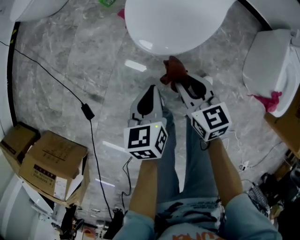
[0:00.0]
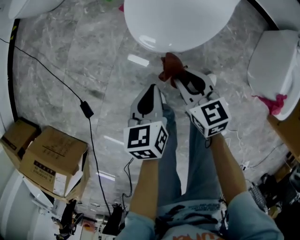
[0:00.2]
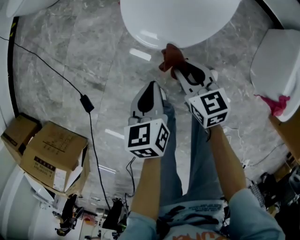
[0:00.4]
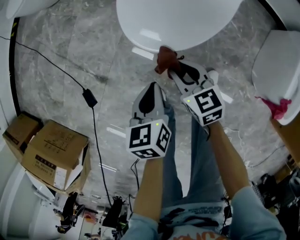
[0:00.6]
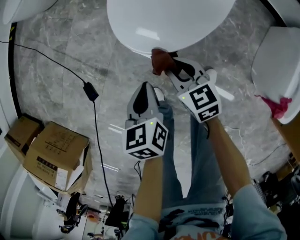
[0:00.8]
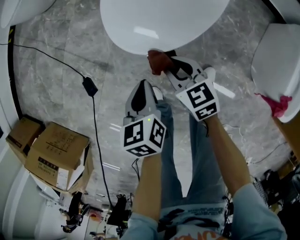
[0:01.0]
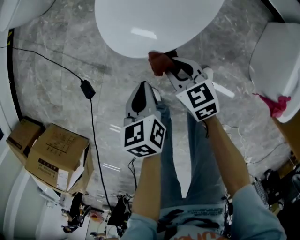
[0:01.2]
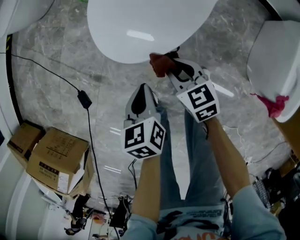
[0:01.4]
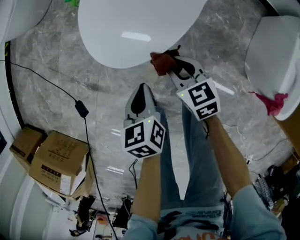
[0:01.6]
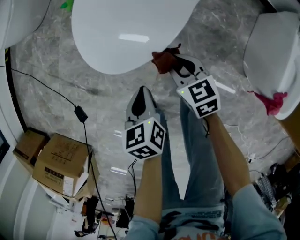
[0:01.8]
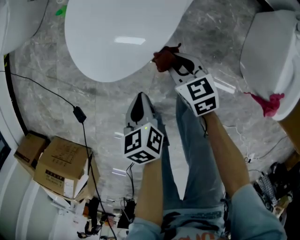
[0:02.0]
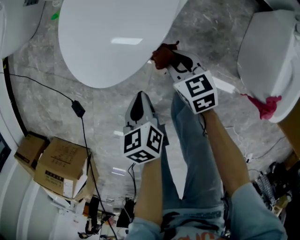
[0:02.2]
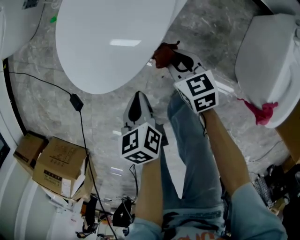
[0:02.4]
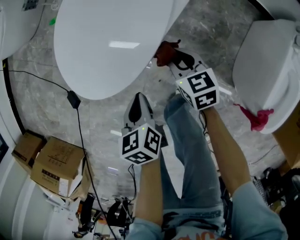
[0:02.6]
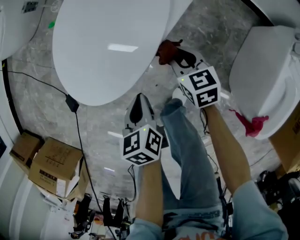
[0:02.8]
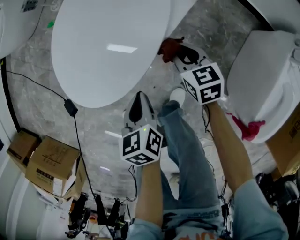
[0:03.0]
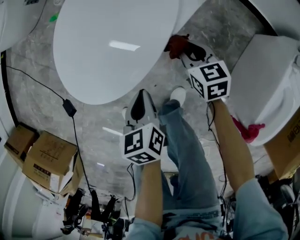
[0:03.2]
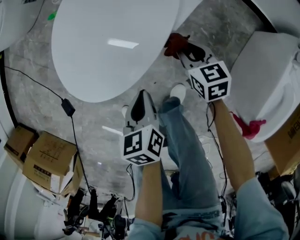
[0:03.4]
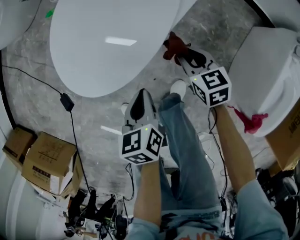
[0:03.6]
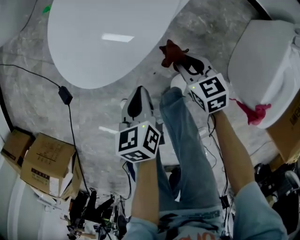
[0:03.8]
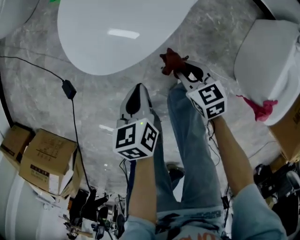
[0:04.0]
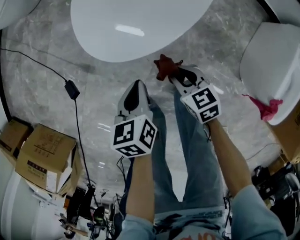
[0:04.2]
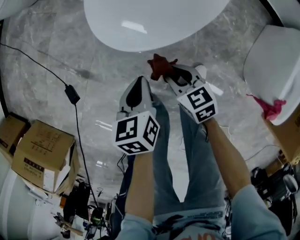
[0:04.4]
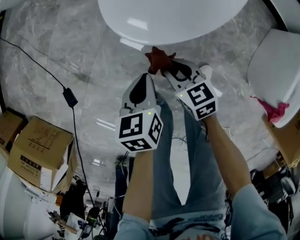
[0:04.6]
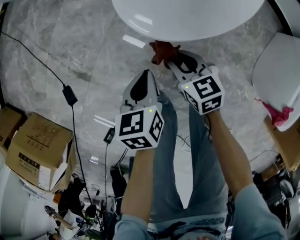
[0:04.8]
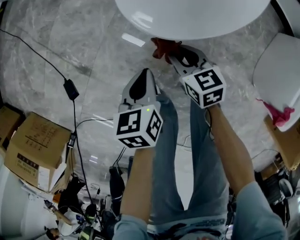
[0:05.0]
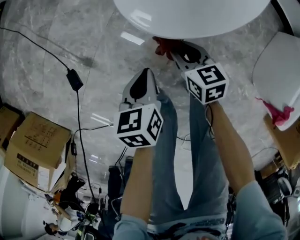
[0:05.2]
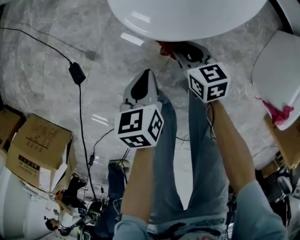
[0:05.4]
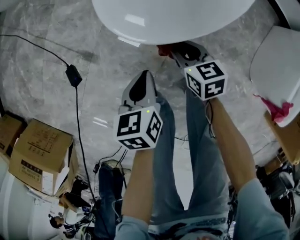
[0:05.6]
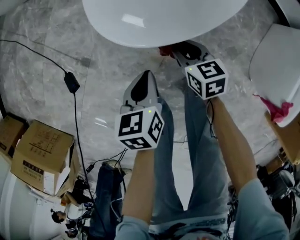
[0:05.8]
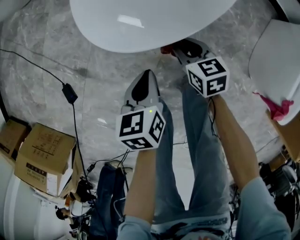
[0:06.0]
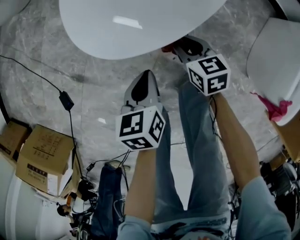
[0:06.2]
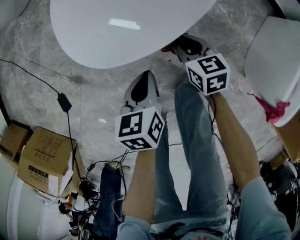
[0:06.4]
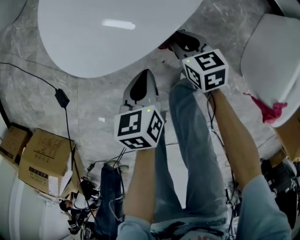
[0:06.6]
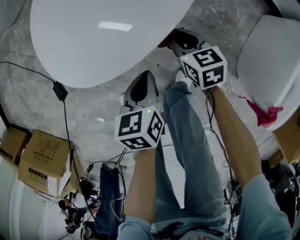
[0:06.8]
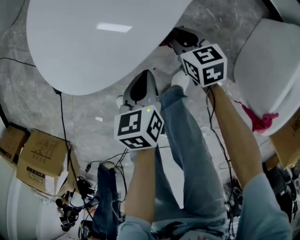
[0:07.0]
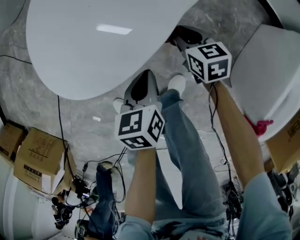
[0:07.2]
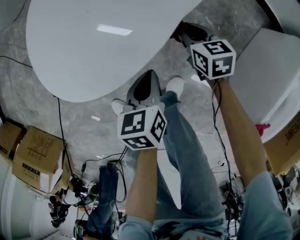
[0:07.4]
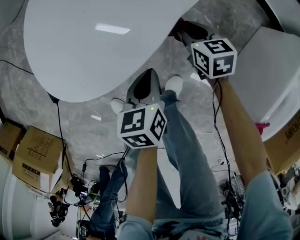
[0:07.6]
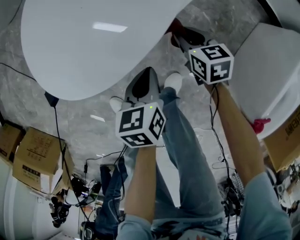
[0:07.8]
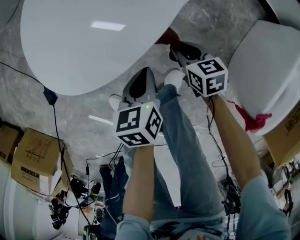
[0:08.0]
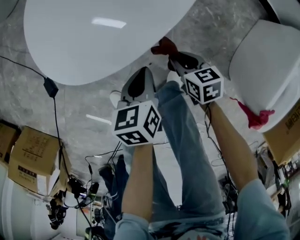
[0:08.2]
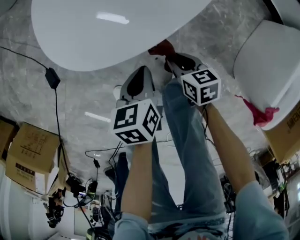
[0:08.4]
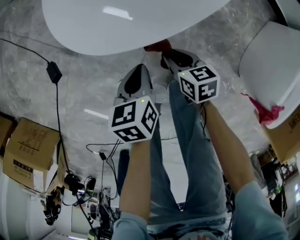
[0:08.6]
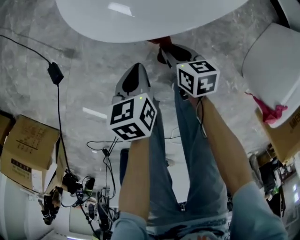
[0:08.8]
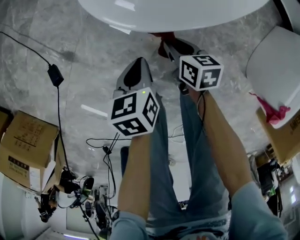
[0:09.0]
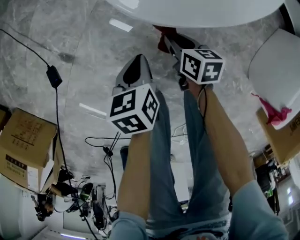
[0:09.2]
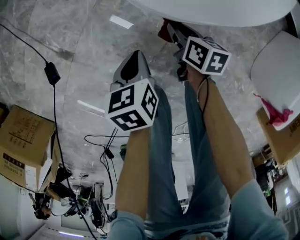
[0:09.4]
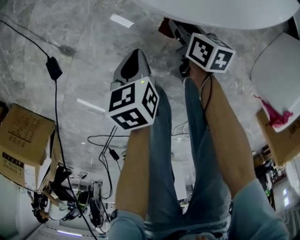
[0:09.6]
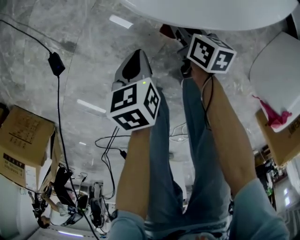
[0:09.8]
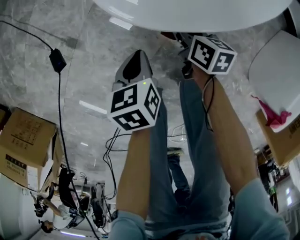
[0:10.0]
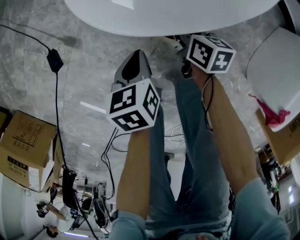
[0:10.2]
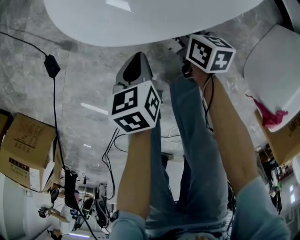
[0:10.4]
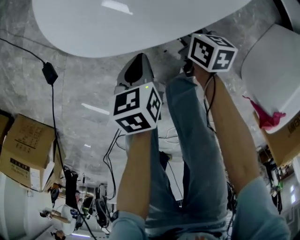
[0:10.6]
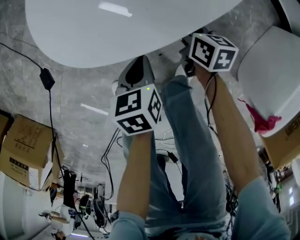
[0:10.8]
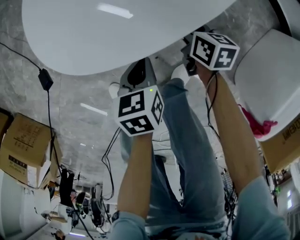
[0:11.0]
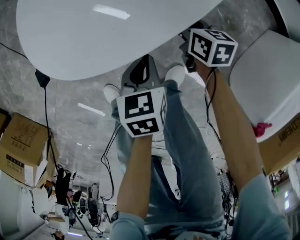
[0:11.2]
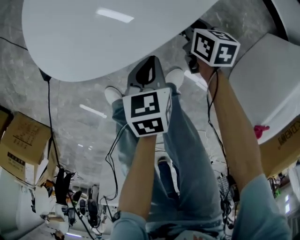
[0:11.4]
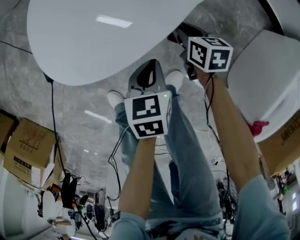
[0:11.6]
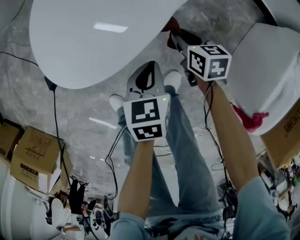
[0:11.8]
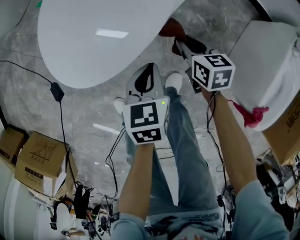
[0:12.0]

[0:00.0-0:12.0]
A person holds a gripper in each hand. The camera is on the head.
0:00.0 to 0:01.6: The left gripper shifts about 10 cm to the right and downward, while the right gripper shifts roughly 15 cm downward and to the right.
0:01.6 to 0:03.0: The left gripper moves to the right, approximately 15 cm. The right gripper moves to the right and forward, about 25 cm.
0:03.0 to 0:04.4: The right gripper moves to the left and backward, approximately 30 cm; the left gripper heads to the left, covering approximately 20 cm.
0:04.4 to 0:06.0: The left gripper travels downward by roughly 5 cm, and moves roughly 5 cm to the left and comes back; the right gripper goes some 10 cm forward, downward and to the right.
0:06.0 to 0:07.6: The right gripper heads to the right and forward, covering about 25 cm, while the left gripper travels to the right by some 20 cm.
0:07.6 to 0:09.0: The right gripper travels to the left and backward by about 30 cm; the left gripper moves to the left, about 25 cm.
0:09.0 to 0:10.4: The right gripper moves forward and to the right, roughly 10 cm. The left gripper heads to the right, covering some 5 cm.
0:10.4 to 0:12.0: Both grippers travel together to the right and upward, approximately 20 cm. The left gripper swivels roughly 20 degrees.

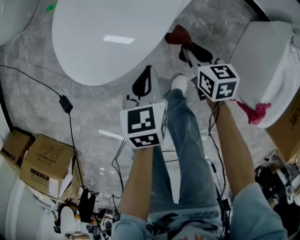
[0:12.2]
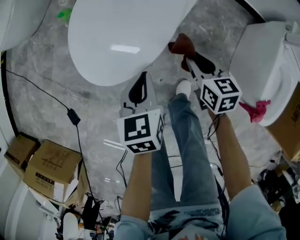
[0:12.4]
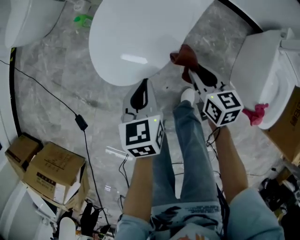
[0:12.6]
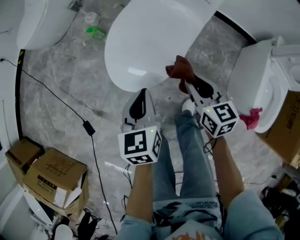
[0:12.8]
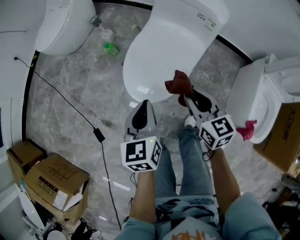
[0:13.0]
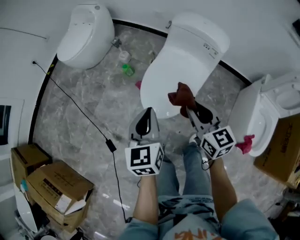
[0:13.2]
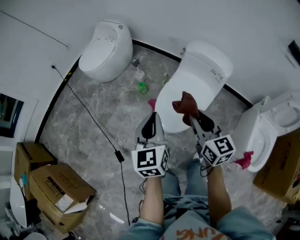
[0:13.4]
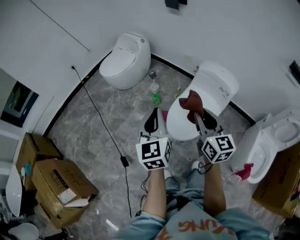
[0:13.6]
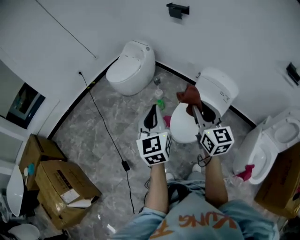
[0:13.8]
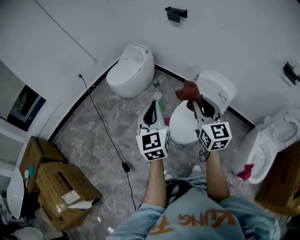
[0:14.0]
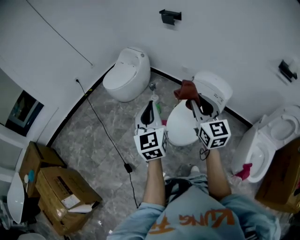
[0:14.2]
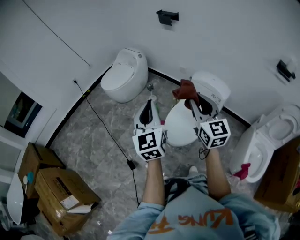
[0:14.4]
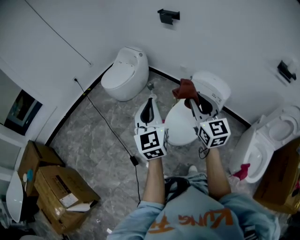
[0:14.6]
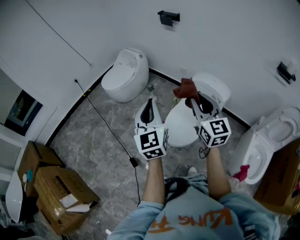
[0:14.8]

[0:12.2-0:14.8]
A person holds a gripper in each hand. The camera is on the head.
0:12.2 to 0:13.4: The grippers both shift upward and to the left by roughly 60 cm. The right gripper tilts its fingers some 40 degrees upward; the left gripper points its fingers some 30 degrees further upward.
0:13.4 to 0:14.8: The two grippers go about 20 cm upward. The right gripper swivels about 20 degrees. The left gripper rotates some 20 degrees.

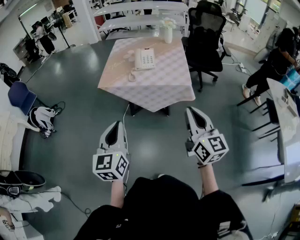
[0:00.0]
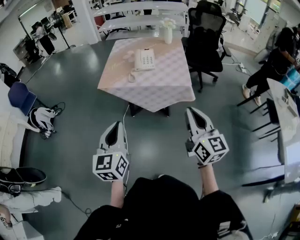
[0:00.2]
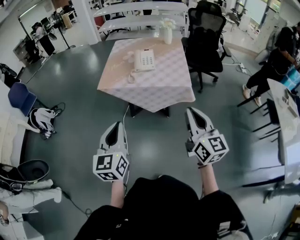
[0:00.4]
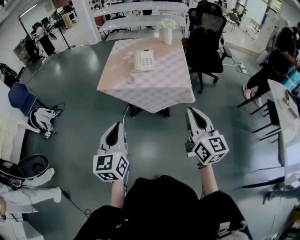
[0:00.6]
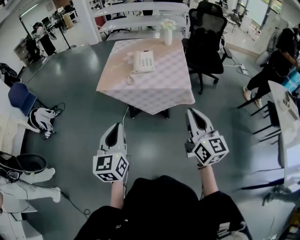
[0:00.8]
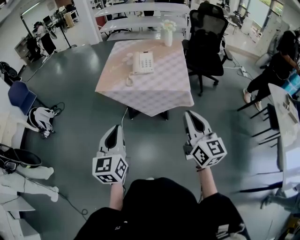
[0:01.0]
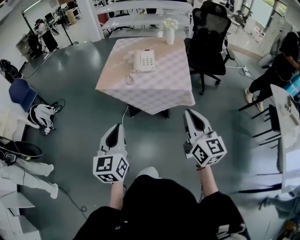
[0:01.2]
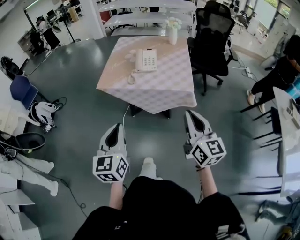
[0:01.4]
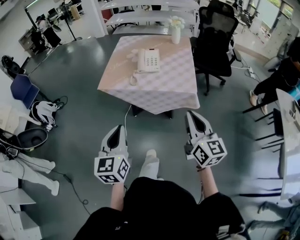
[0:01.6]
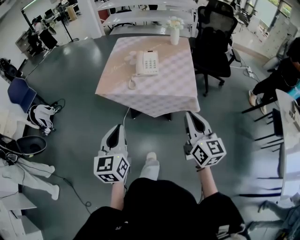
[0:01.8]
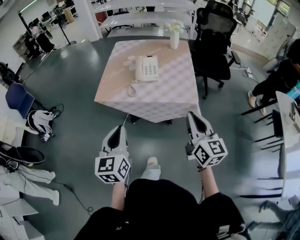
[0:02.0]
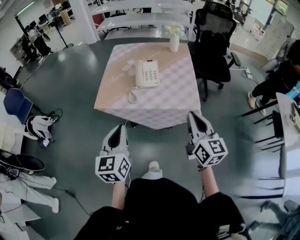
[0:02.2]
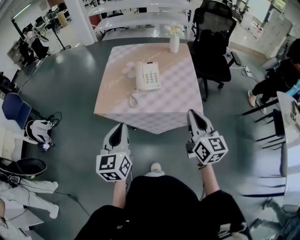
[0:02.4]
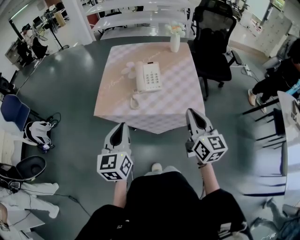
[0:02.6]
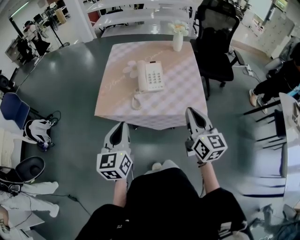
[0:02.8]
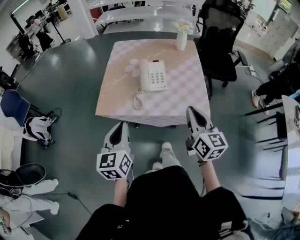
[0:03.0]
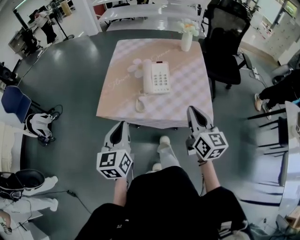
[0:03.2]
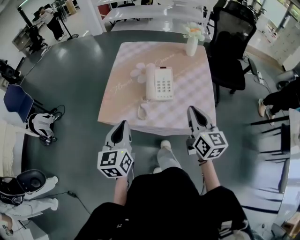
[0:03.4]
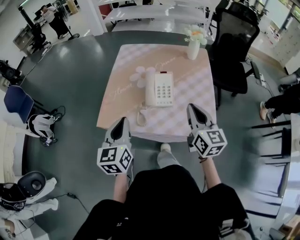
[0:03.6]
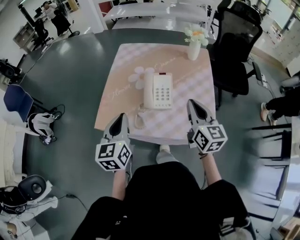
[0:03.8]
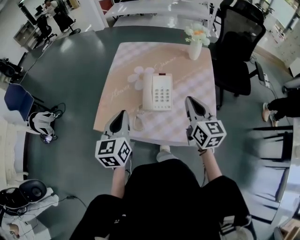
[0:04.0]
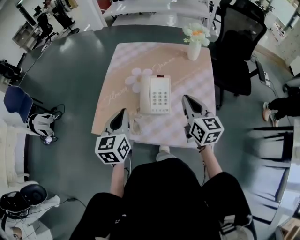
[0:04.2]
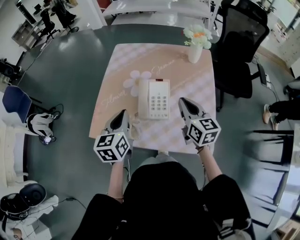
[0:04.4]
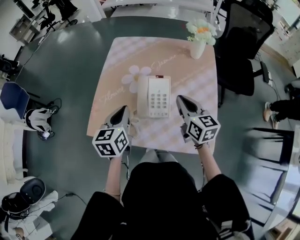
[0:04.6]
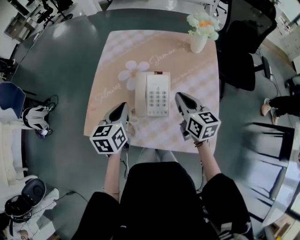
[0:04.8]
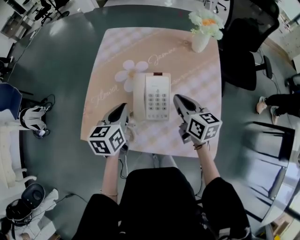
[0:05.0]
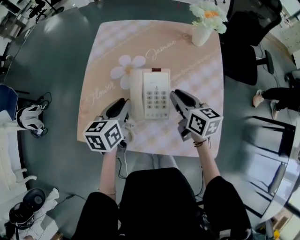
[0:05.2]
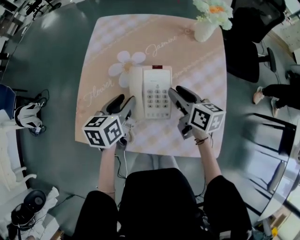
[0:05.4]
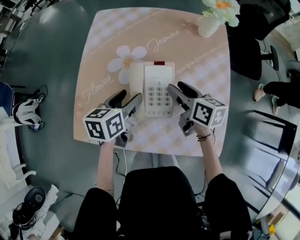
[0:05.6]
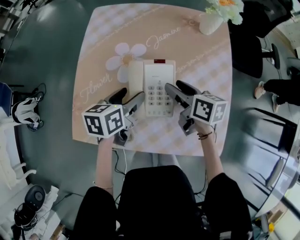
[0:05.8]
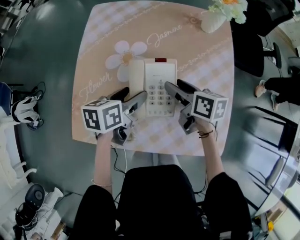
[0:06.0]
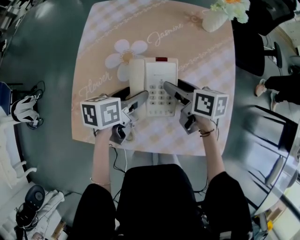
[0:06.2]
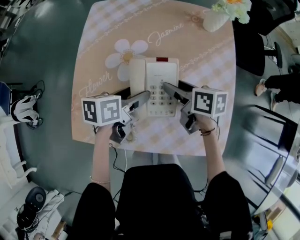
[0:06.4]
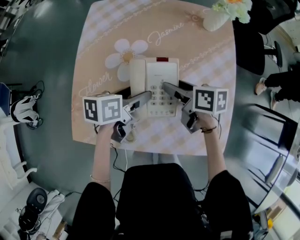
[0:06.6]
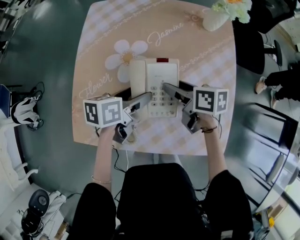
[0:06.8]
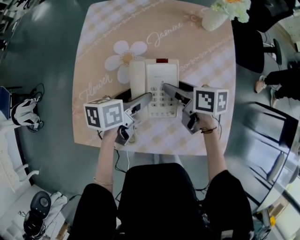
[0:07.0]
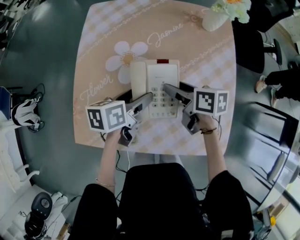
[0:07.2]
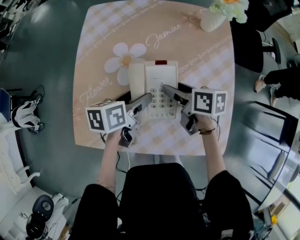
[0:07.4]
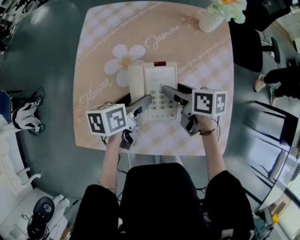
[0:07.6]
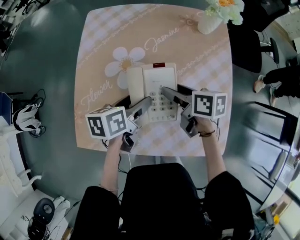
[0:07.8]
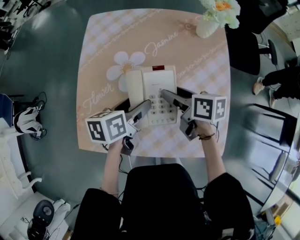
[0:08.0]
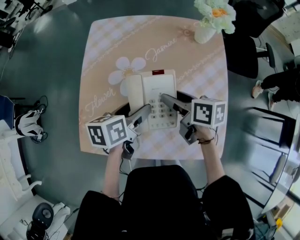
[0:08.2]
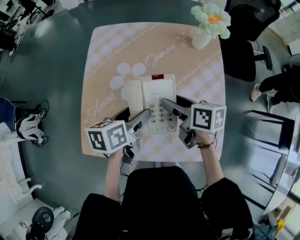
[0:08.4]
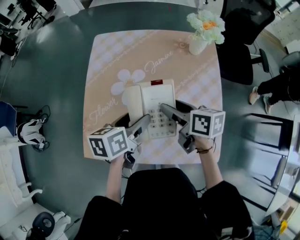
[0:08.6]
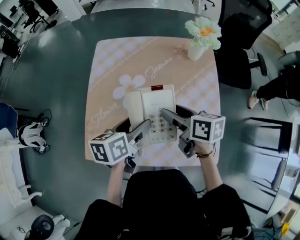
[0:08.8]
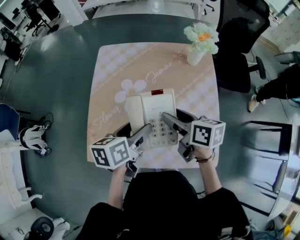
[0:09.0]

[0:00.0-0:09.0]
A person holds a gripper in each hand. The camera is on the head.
0:00.0 to 0:01.6: The grippers both shift forward by roughly 5 cm.
0:01.6 to 0:03.0: The grippers both shift forward by some 25 cm.
0:03.0 to 0:04.4: Both grippers travel together forward, some 25 cm.
0:04.4 to 0:06.0: The two grippers go some 20 cm downward and forward. The right gripper swivels approximately 40 degrees, and opens. The left gripper swivels some 40 degrees, and opens its fingers.
0:06.0 to 0:07.6: The grippers make only small movements.
0:07.6 to 0:09.0: The grippers both shift upward by roughly 15 cm.
